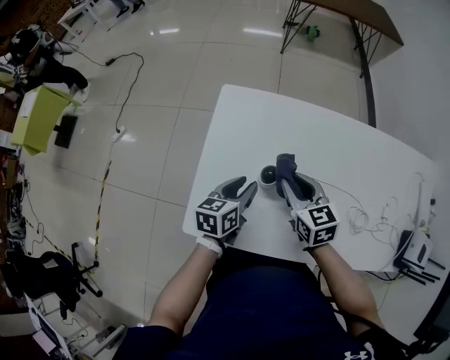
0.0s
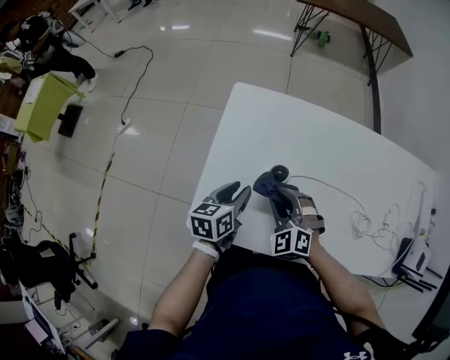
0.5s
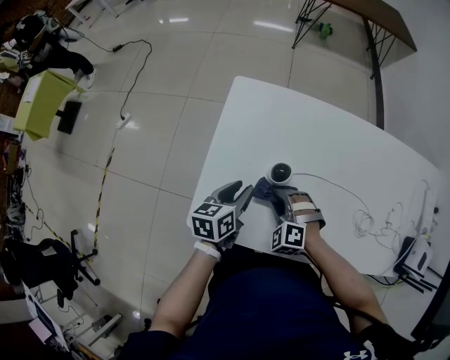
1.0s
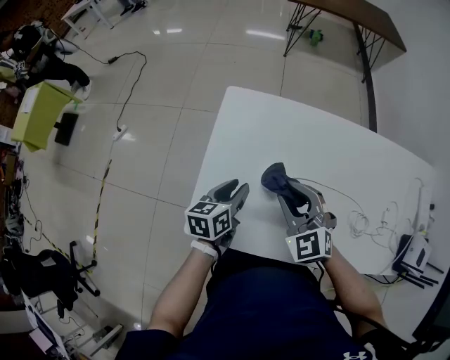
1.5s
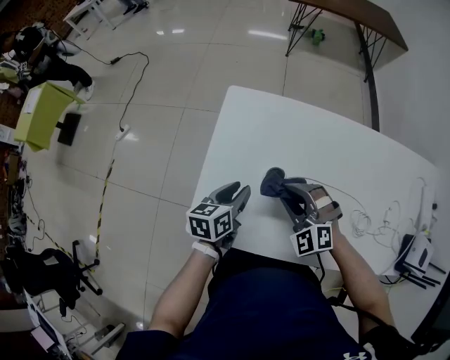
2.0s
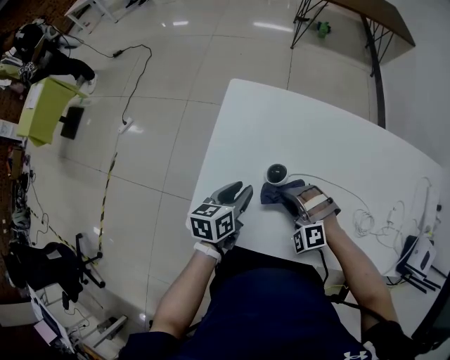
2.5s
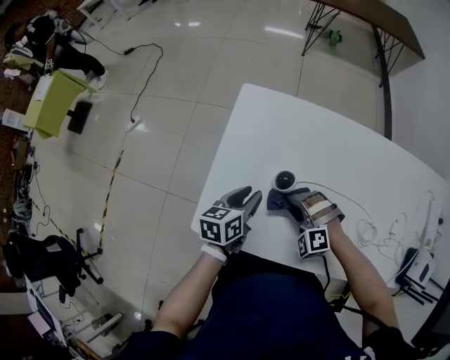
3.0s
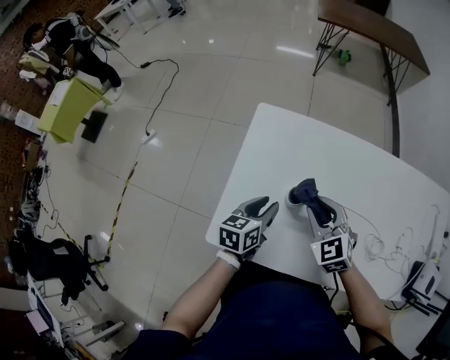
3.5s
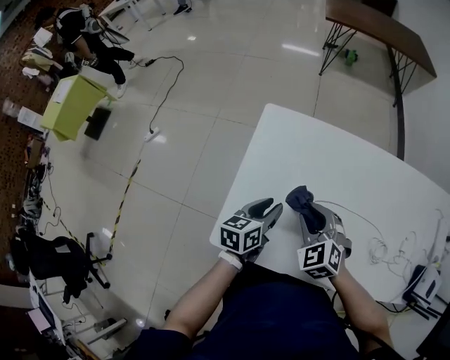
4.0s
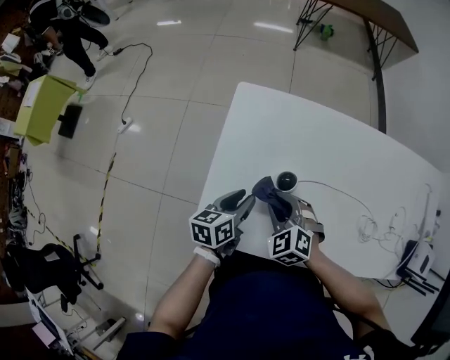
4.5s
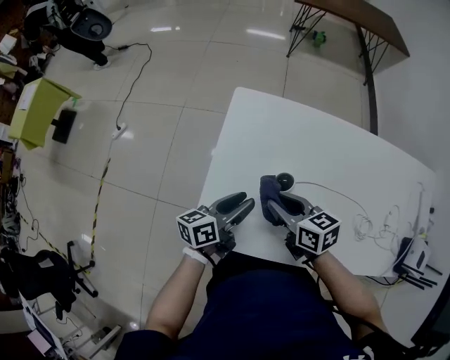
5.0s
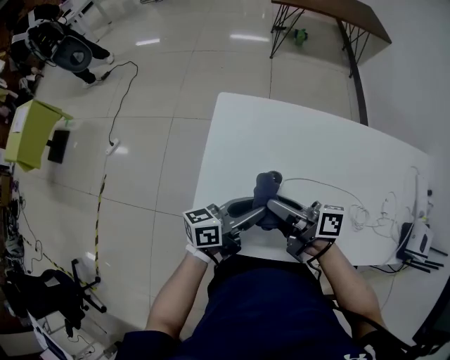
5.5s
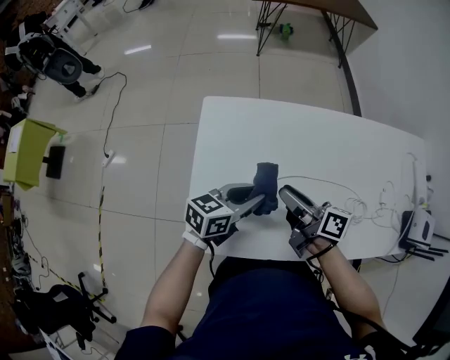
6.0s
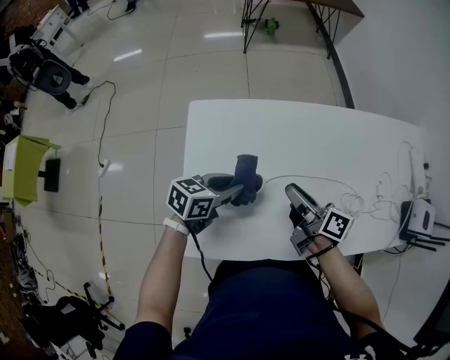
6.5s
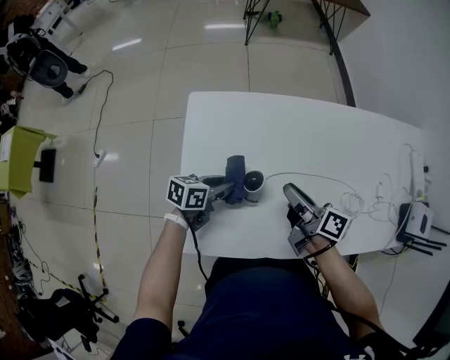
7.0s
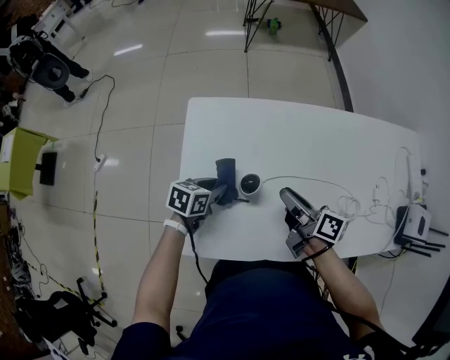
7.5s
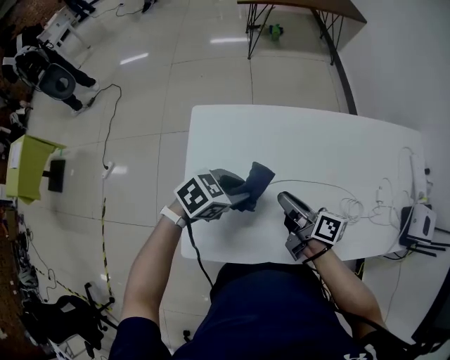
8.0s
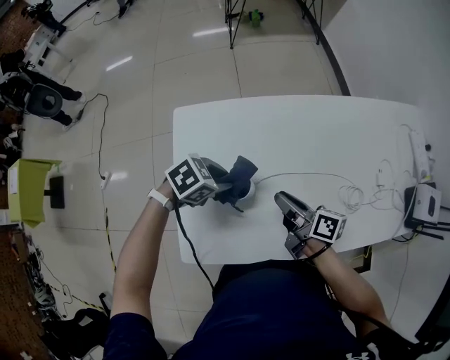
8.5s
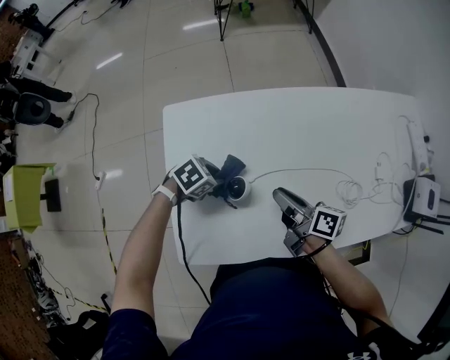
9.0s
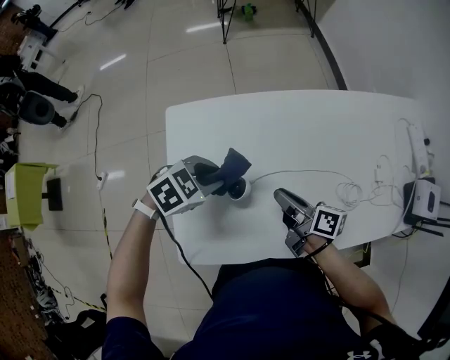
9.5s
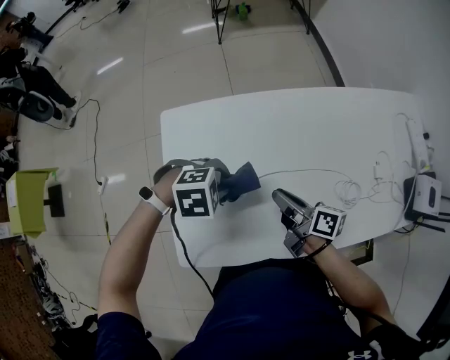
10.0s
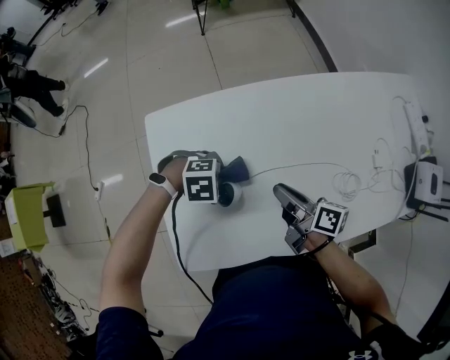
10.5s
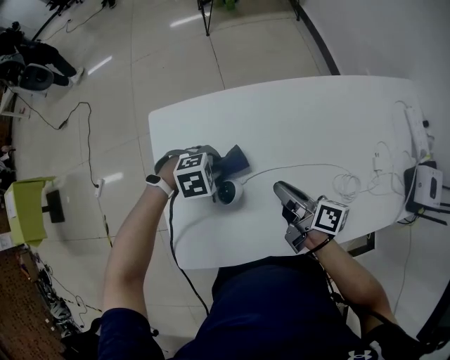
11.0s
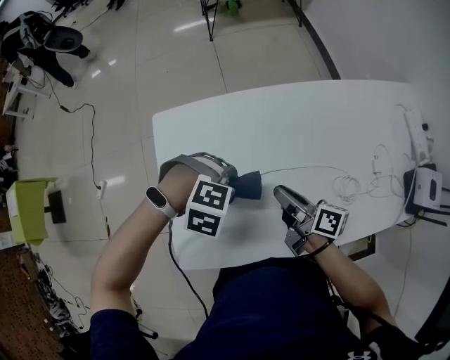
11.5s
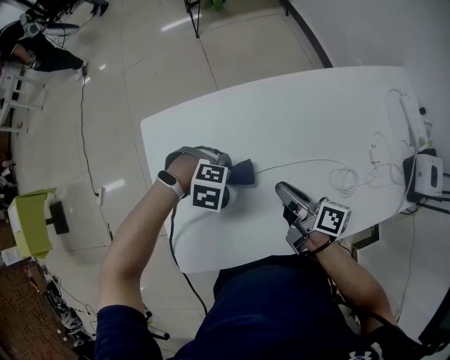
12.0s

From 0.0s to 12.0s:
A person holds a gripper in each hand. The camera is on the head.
From 0.0s to 2.0s: The right gripper goes up and down, roughly 15 cm each way, reversing 2 times, and twists approximately 60 degrees counterclockwise, seen from behind.
From 2.0s to 4.0s: The right gripper reaches some 10 cm downward, then returns, and turns by approximately 30 degrees.
From 4.0s to 6.0s: The grippers both shift to the right by roughly 5 cm. The left gripper rotates about 40 degrees. The right gripper reaches about 5 cm downward, then returns, and rotates around the line of its fingers by about 90 degrees, clockwise from behind.
From 6.0s to 8.0s: The left gripper goes downward and returns, roughly 10 cm each way, and rotates roughly 40 degrees.
From 8.0s to 10.0s: The left gripper reaches roughly 15 cm downward, then returns, and swivels about 50 degrees.
From 10.0s to 12.0s: The left gripper moves up and down over some 10 cm, changing direction 2 times, and swivels about 20 degrees.

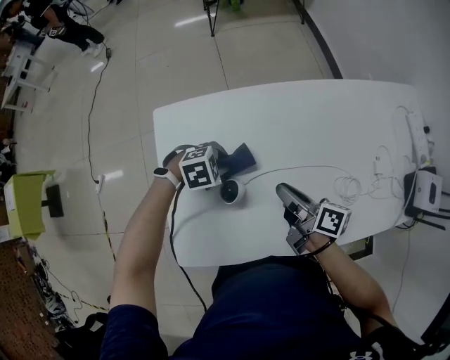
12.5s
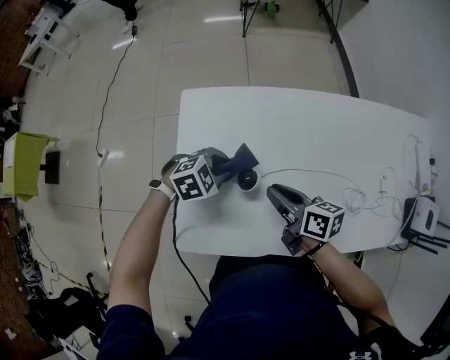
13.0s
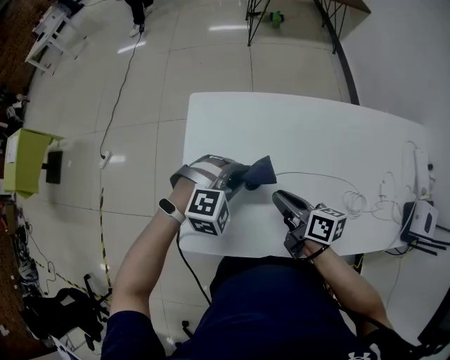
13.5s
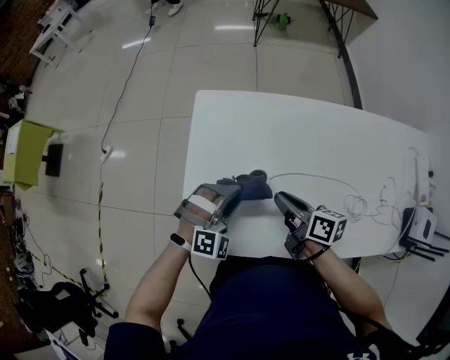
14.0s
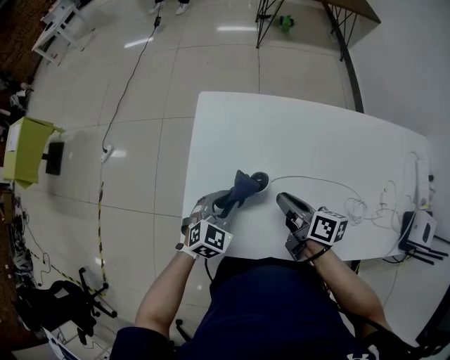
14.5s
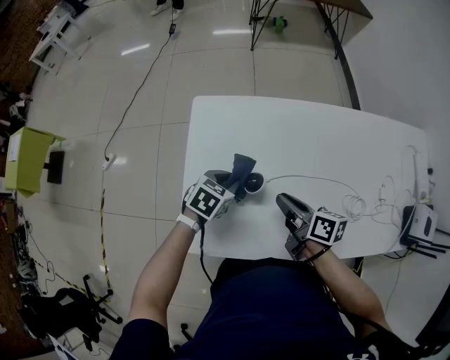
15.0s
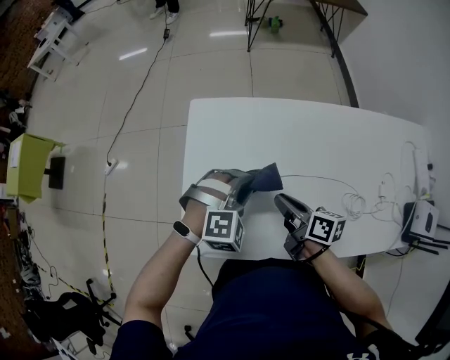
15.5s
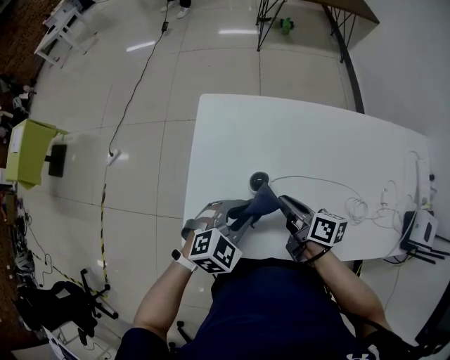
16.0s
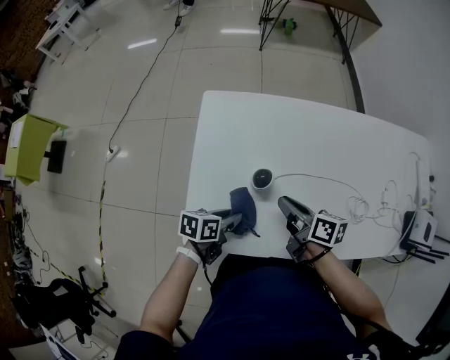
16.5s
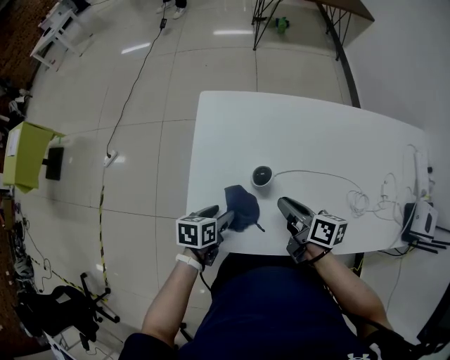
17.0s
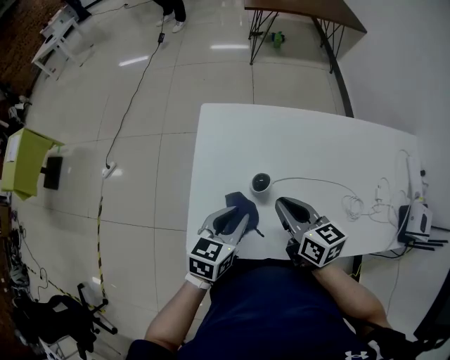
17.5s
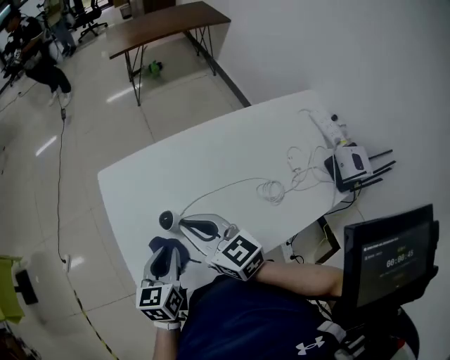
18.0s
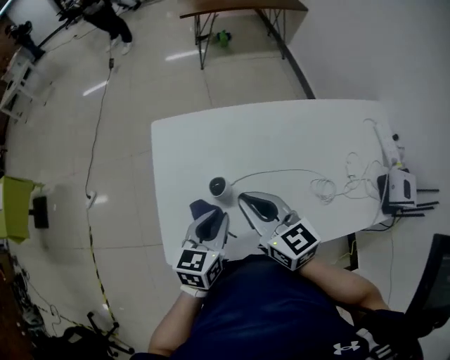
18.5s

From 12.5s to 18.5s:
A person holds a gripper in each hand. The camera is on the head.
From 12.5s to 14.5s: The right gripper changes place by approximately 10 cm. The left gripper ends up roughly 15 cm from where it was, and rotates approximately 50 degrees.
From 14.5s to 16.5s: The left gripper heads backward, covering roughly 5 cm, and twists about 60 degrees counterclockwise, seen from behind.
From 16.5s to 18.5s: The left gripper is displaced upward and to the right by some 15 cm, swivels approximately 40 degrees, and opens, then closes again, while the right gripper heads upward, covering approximately 15 cm, and twists about 40 degrees counterclockwise, seen from behind.

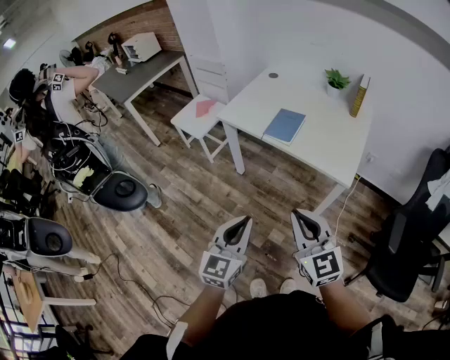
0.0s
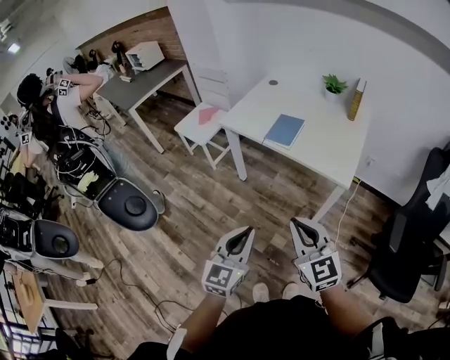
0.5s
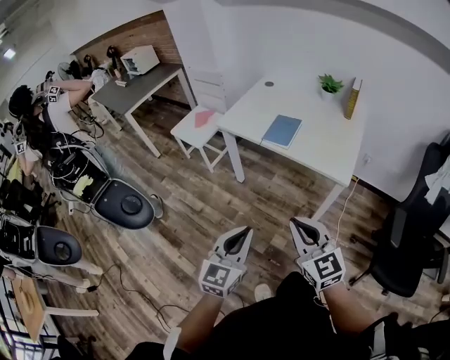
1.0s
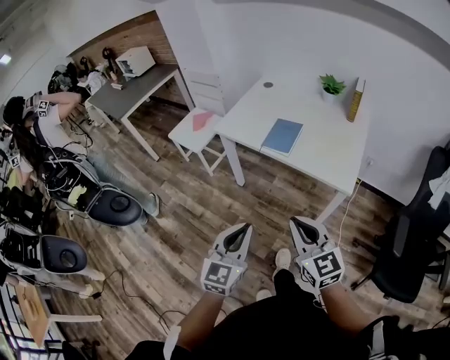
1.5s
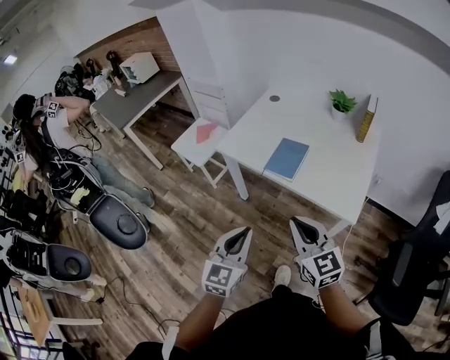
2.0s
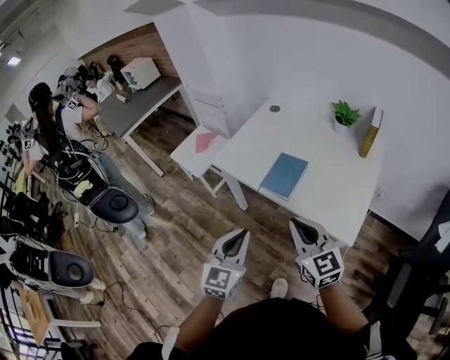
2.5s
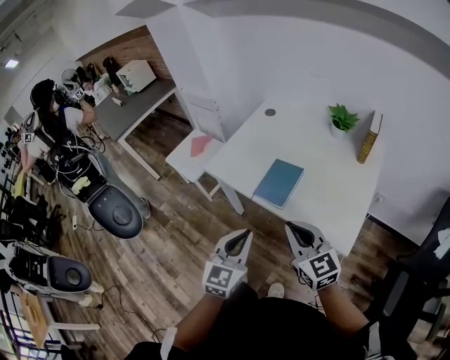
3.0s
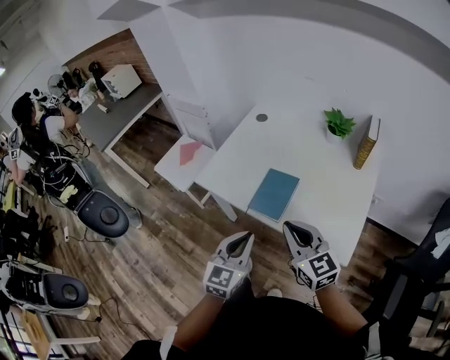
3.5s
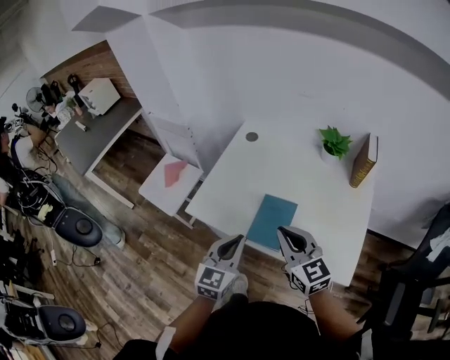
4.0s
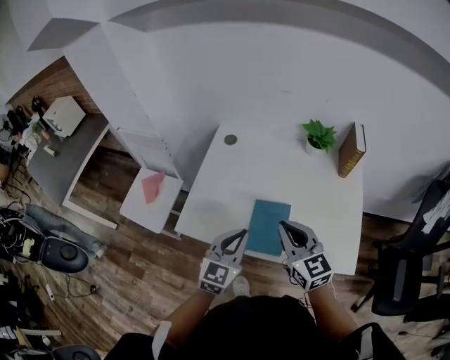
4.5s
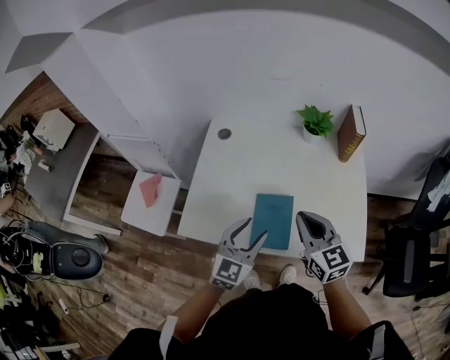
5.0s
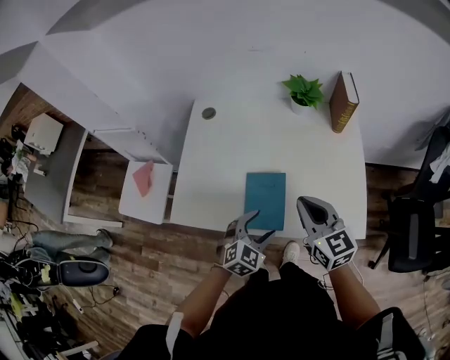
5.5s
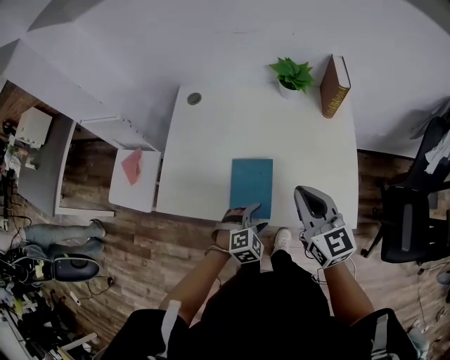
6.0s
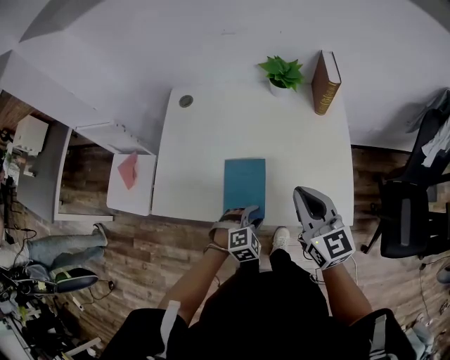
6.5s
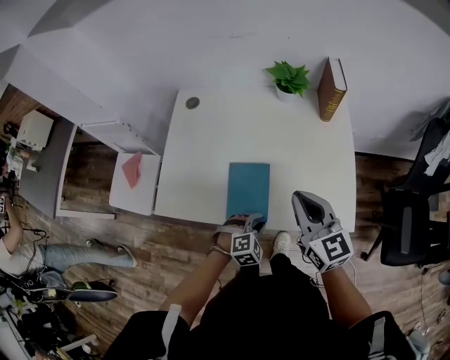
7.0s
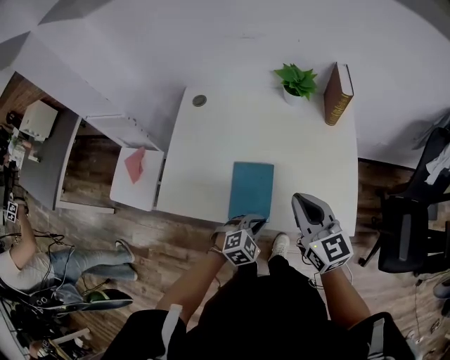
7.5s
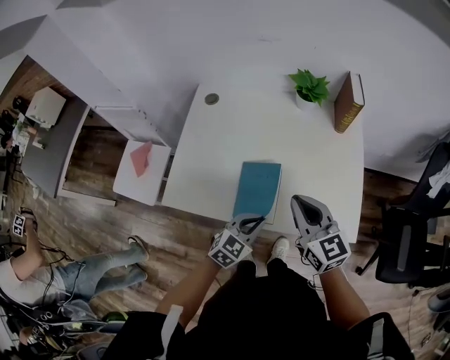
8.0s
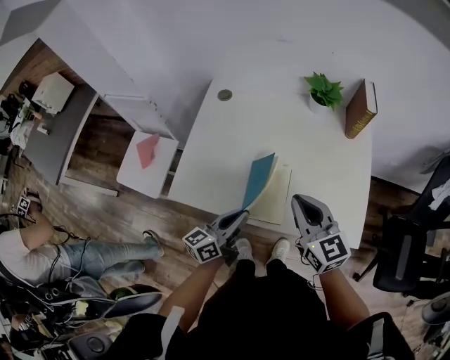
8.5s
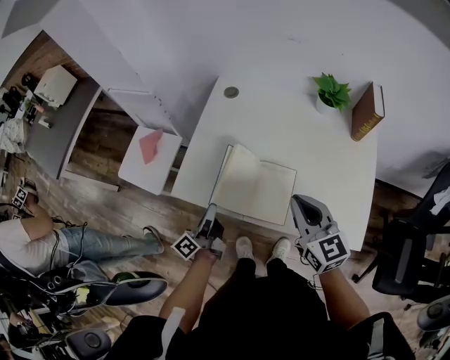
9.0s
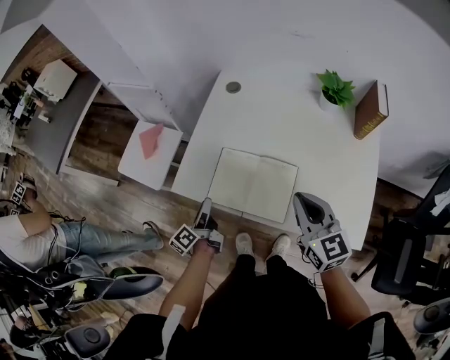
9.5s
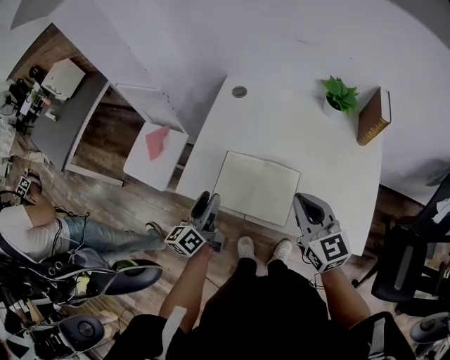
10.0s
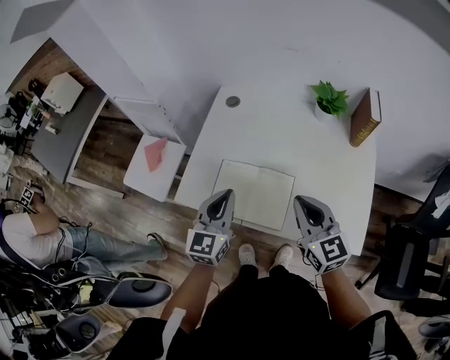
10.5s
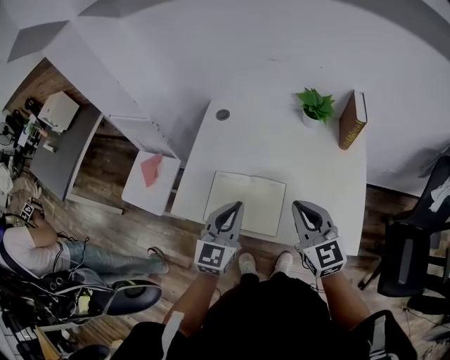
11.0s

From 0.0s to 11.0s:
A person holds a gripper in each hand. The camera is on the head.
From 0.0s to 2.0s: The two grippers go about 15 cm forward.
From 2.0s to 3.5s: The left gripper travels forward and to the right by roughly 20 cm, while the right gripper goes some 20 cm forward.
From 3.5s to 5.5s: The right gripper shifts by about 15 cm, and changes its angle by some 30 degrees. The left gripper ends up roughly 20 cm from where it was, changes its angle by approximately 50 degrees, and opens up.
From 5.5s to 7.5s: The left gripper travels downward by about 5 cm, and closes.
From 7.5s to 9.0s: The left gripper shifts by some 25 cm, and points its fingers about 50 degrees further upward; the right gripper moves approximately 10 cm.
From 9.0s to 11.0s: The left gripper goes approximately 20 cm upward and to the right, twists about 70 degrees clockwise, seen from behind, and opens, then closes again.
